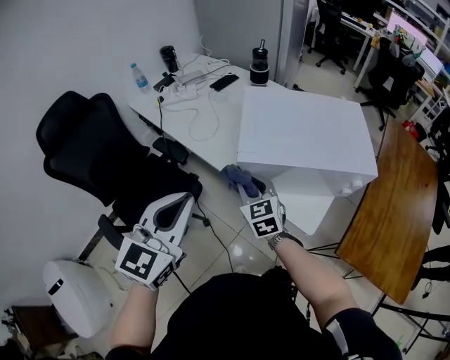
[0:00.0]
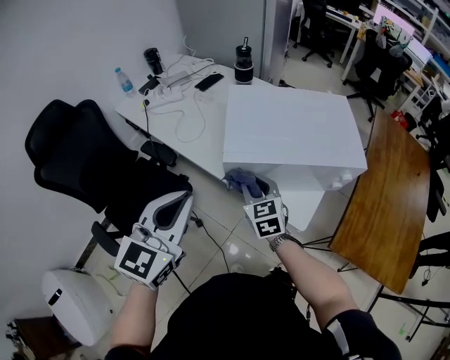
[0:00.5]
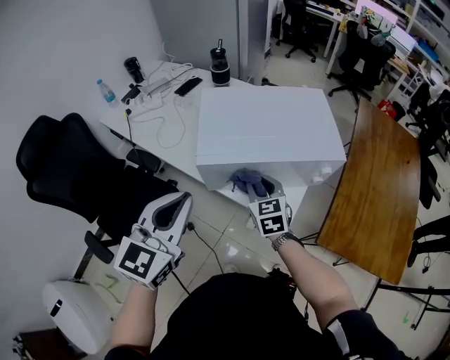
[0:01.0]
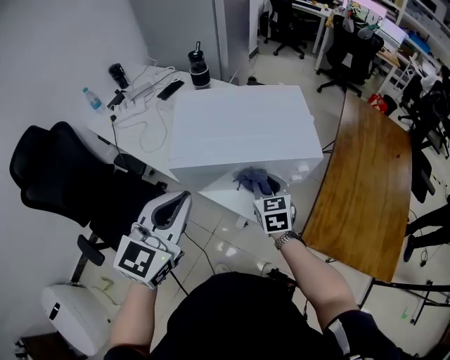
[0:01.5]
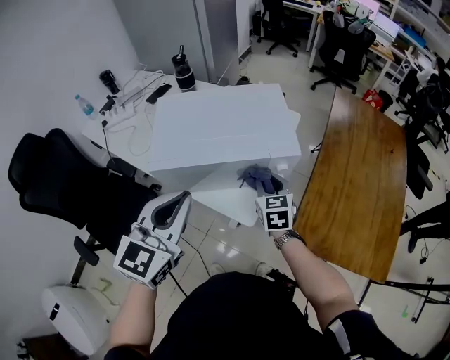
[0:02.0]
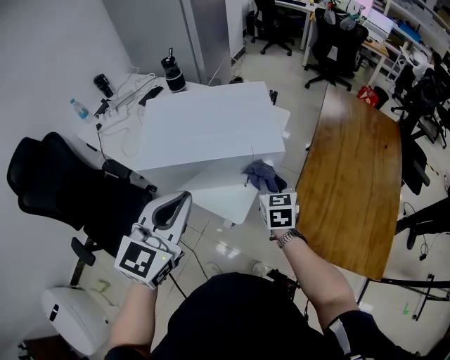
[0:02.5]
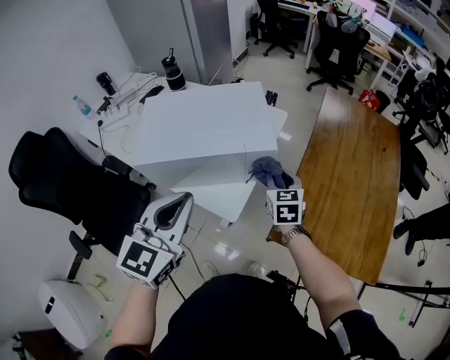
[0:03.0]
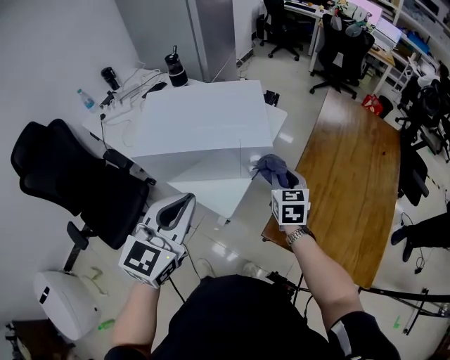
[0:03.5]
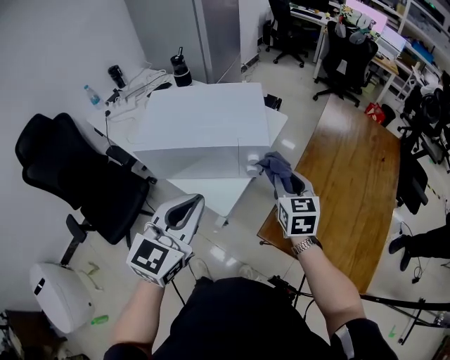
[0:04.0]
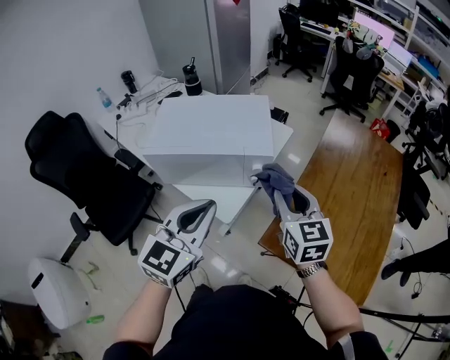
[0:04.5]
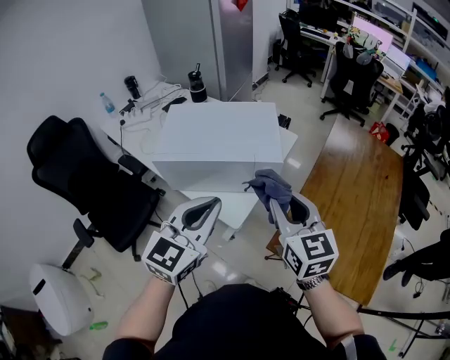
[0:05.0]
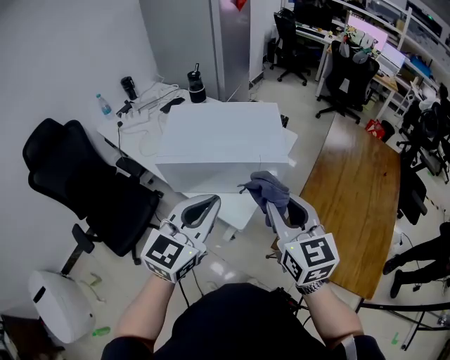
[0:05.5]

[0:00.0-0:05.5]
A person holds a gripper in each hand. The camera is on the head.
0:00.0 to 0:02.0: Both grippers move to the right, some 30 cm. The right gripper rotates approximately 30 degrees.
0:02.0 to 0:03.5: The grippers both shift to the right by about 10 cm.
0:03.5 to 0:05.5: The right gripper travels upward, backward and to the left by some 25 cm, and rotates roughly 30 degrees.

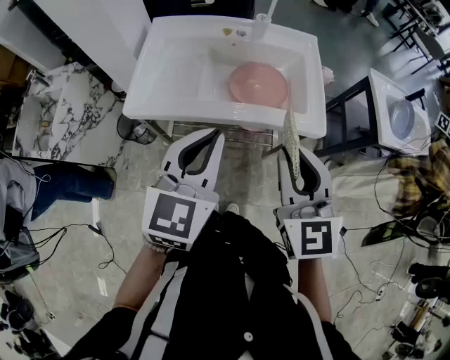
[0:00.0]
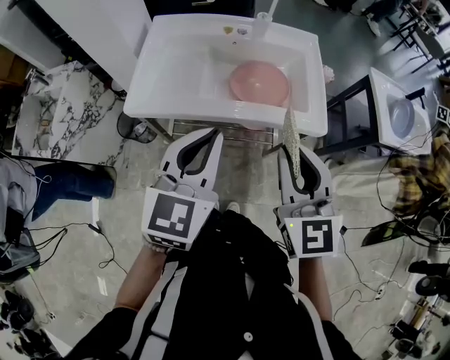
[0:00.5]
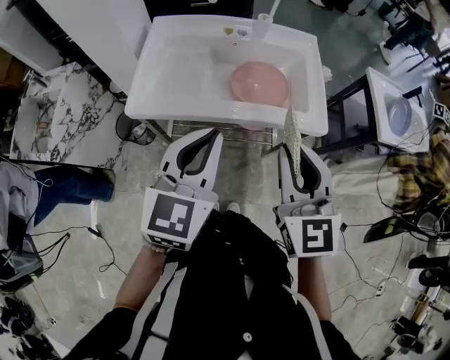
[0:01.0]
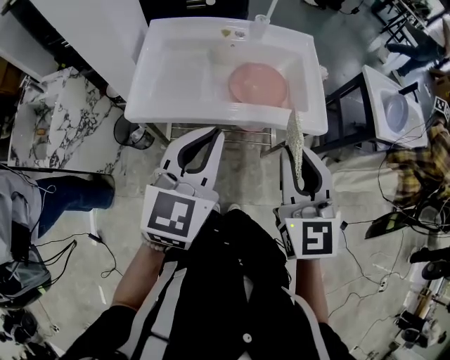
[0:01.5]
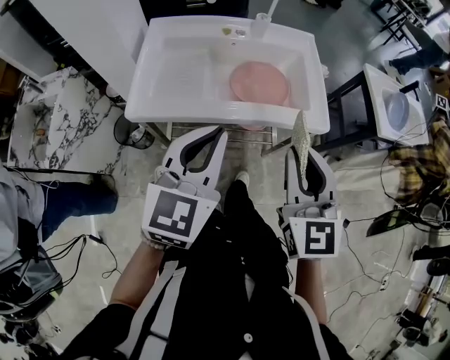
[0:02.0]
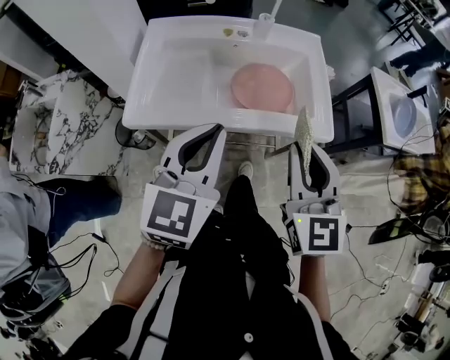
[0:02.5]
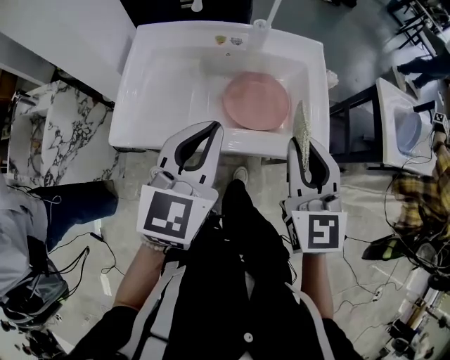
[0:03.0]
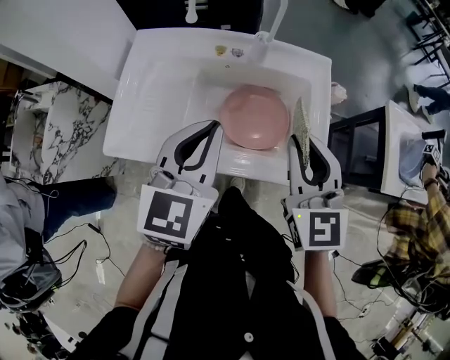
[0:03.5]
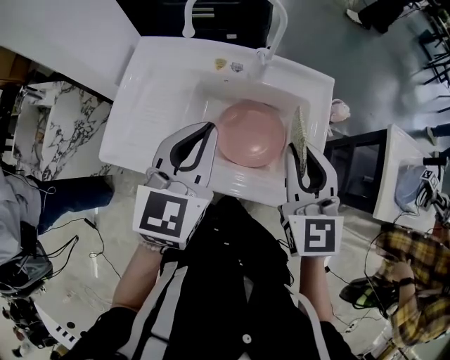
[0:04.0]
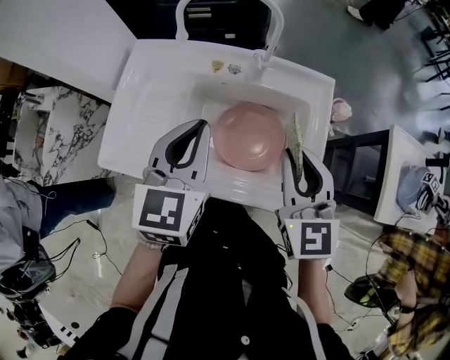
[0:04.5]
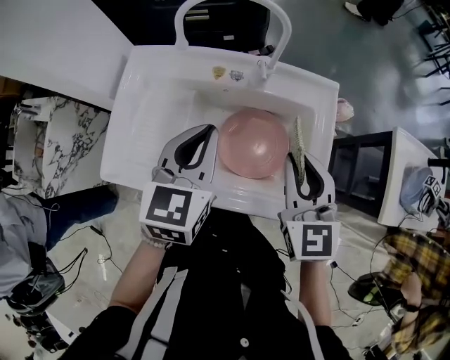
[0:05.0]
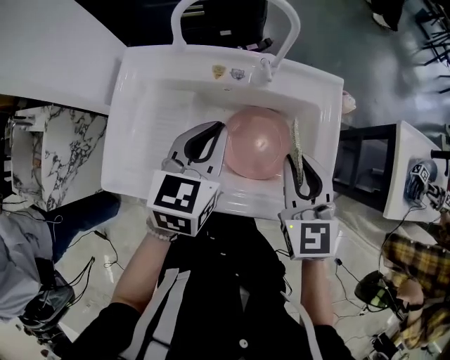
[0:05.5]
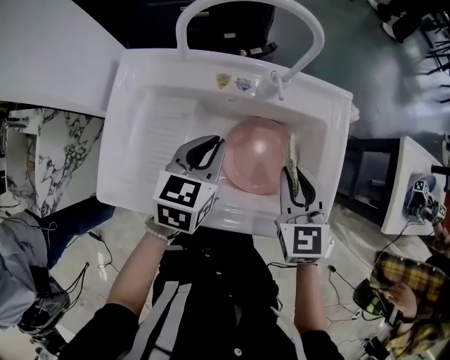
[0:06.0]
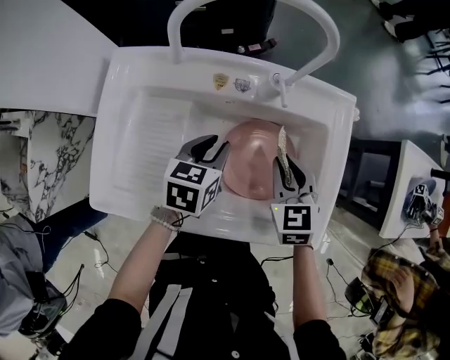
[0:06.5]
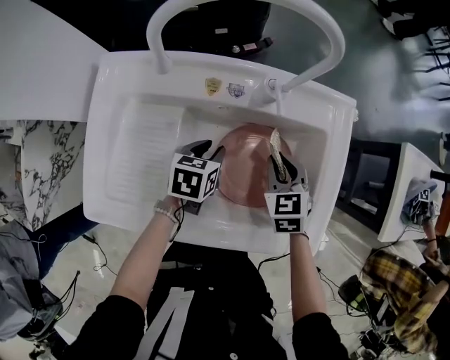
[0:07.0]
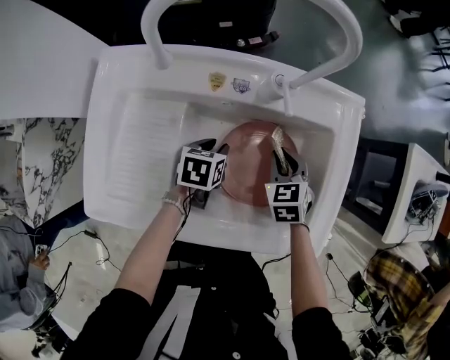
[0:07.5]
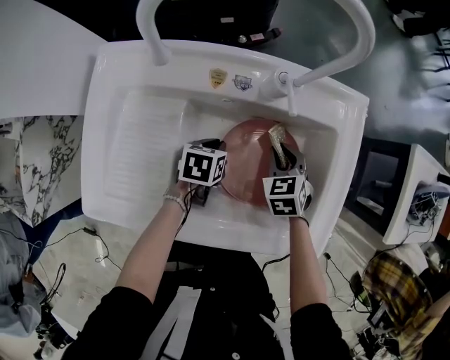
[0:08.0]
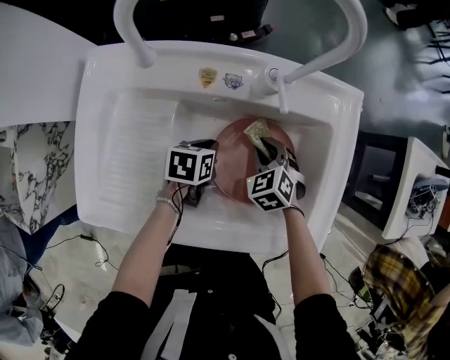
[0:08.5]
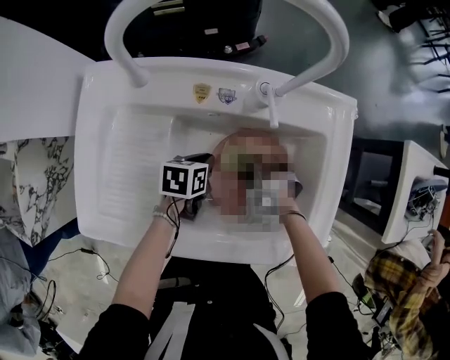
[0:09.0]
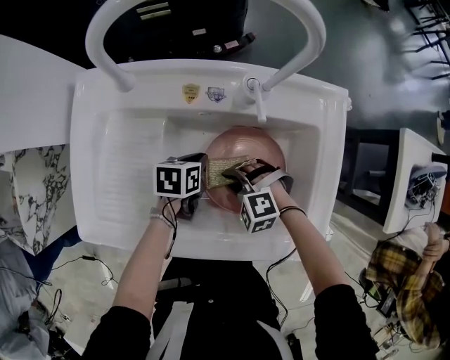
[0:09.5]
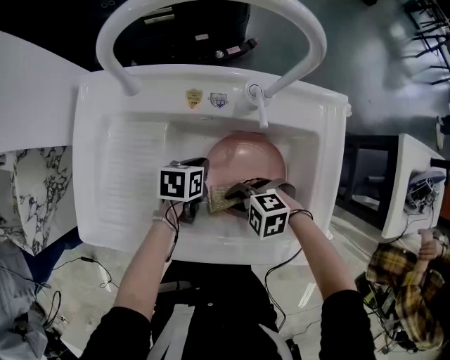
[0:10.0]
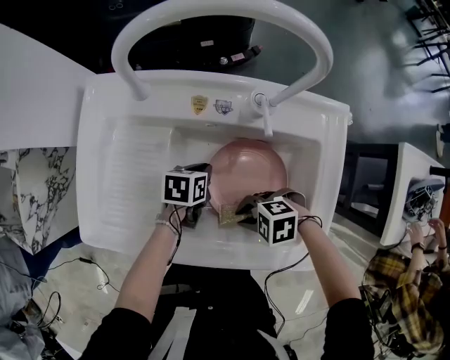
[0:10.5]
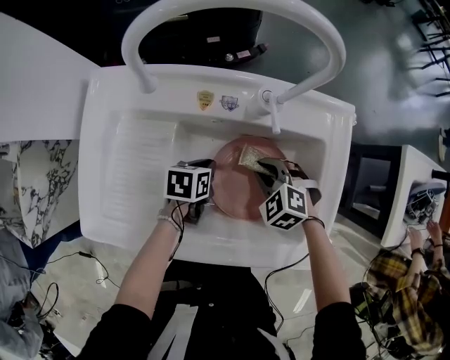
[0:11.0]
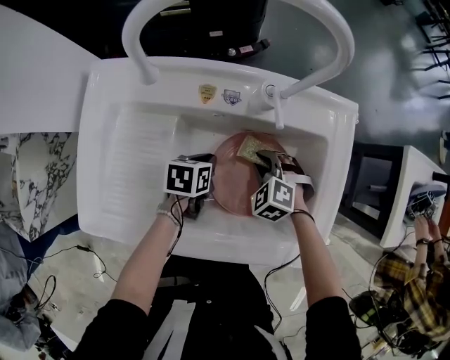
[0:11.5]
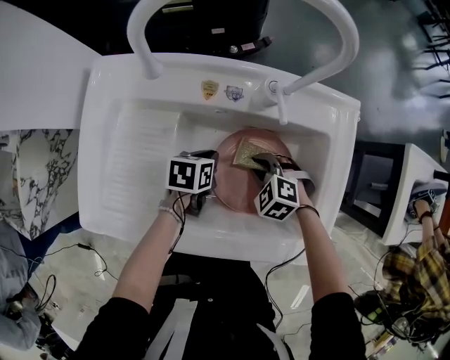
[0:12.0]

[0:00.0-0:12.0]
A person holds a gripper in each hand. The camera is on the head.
0:00.0 to 0:02.0: The grippers stay close to where they were, moving slightly.
0:02.0 to 0:04.0: The two grippers go approximately 25 cm forward.
0:04.0 to 0:06.0: The two grippers go about 15 cm downward and forward. The left gripper rotates approximately 20 degrees.
0:06.0 to 0:08.0: Both grippers travel together downward, about 20 cm. The right gripper changes its angle by some 30 degrees; the left gripper turns by about 30 degrees.
0:08.0 to 0:10.0: The right gripper ends up roughly 15 cm from where it was, and rotates approximately 70 degrees.
0:10.0 to 0:12.0: The right gripper shifts by some 10 cm, and rotates about 30 degrees.

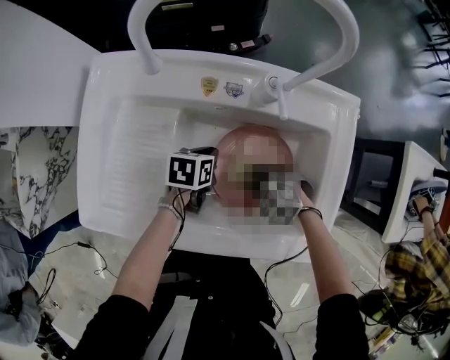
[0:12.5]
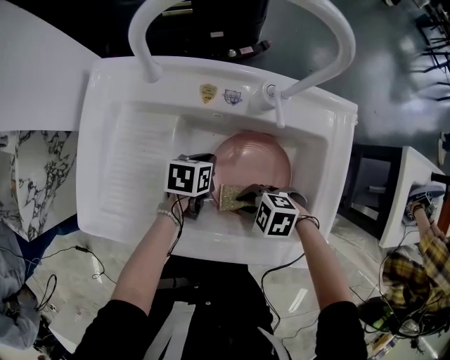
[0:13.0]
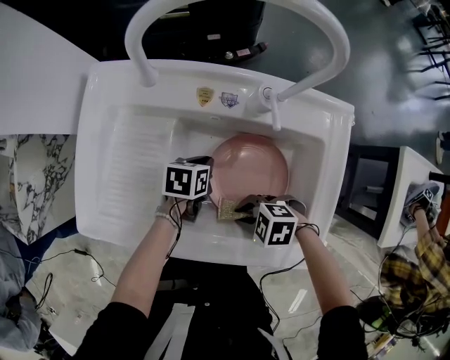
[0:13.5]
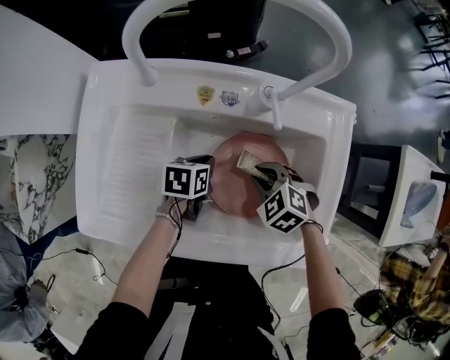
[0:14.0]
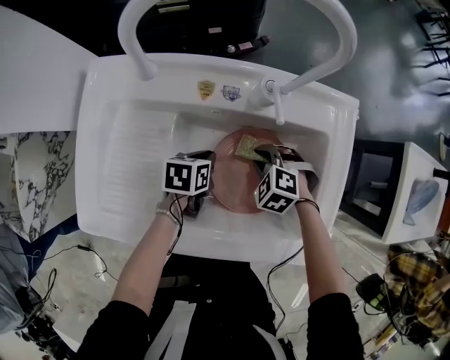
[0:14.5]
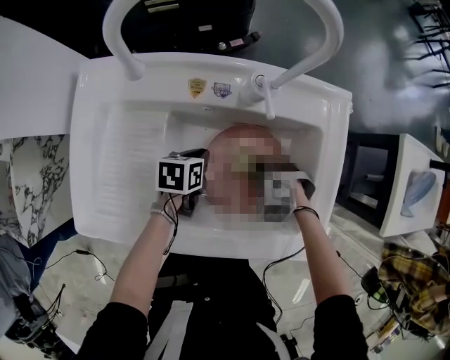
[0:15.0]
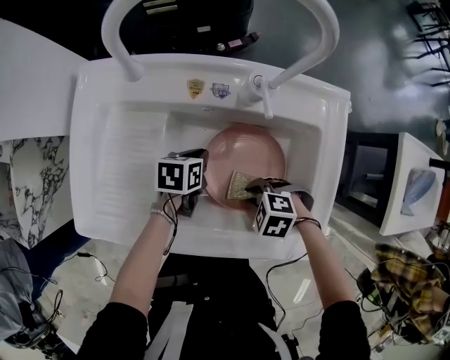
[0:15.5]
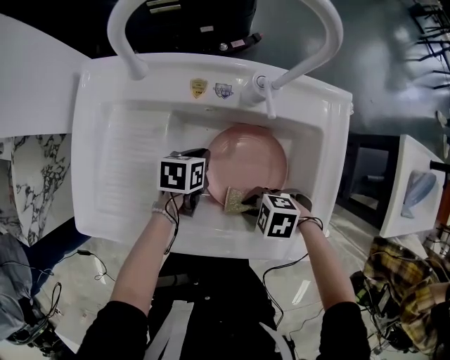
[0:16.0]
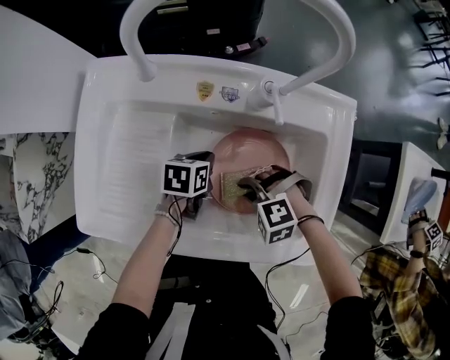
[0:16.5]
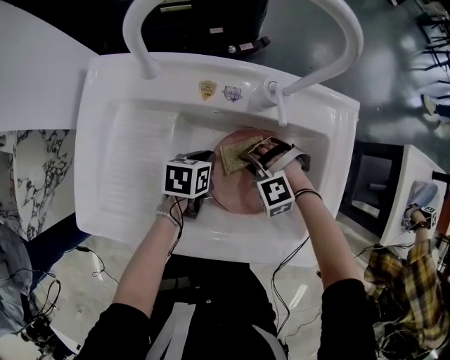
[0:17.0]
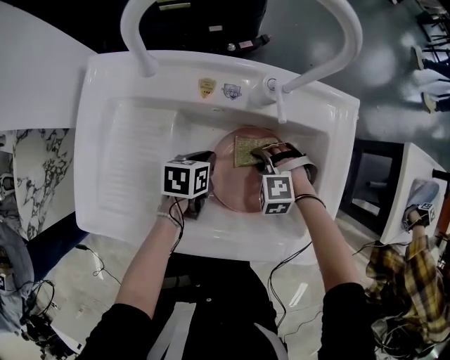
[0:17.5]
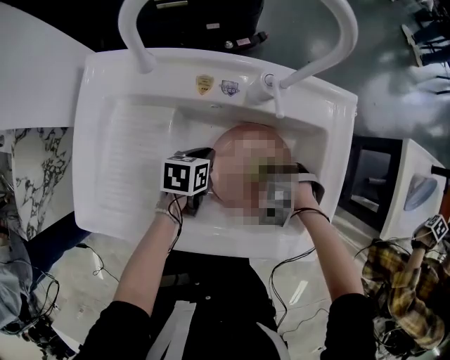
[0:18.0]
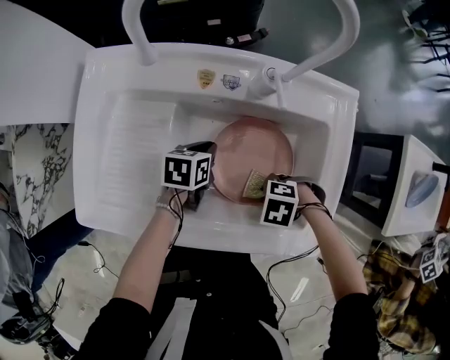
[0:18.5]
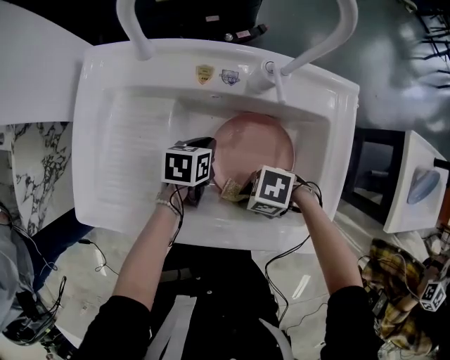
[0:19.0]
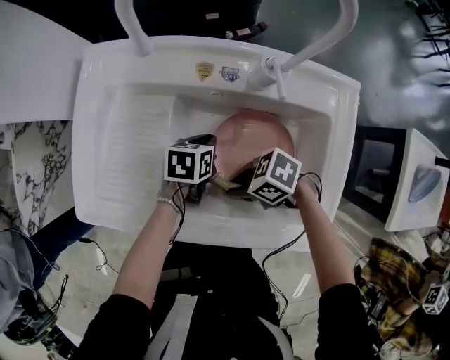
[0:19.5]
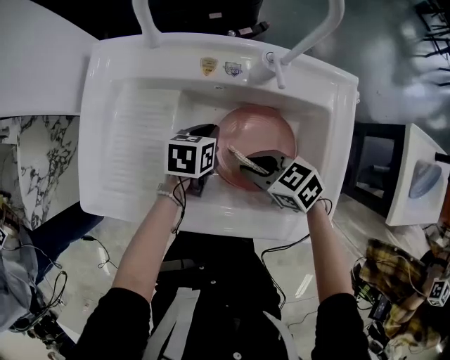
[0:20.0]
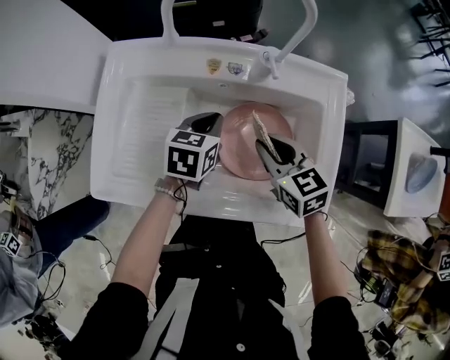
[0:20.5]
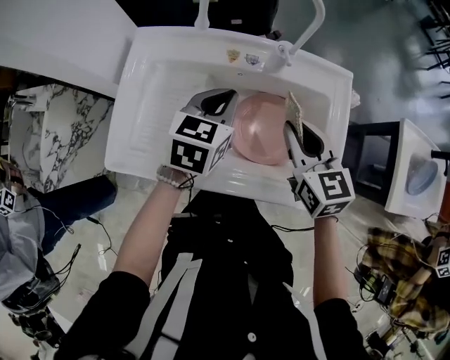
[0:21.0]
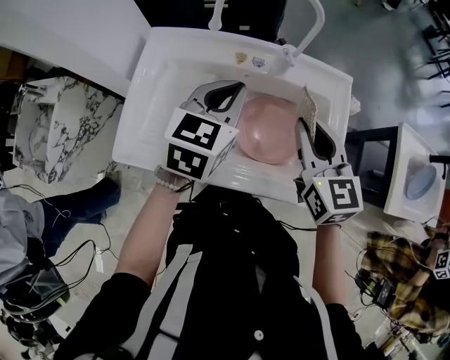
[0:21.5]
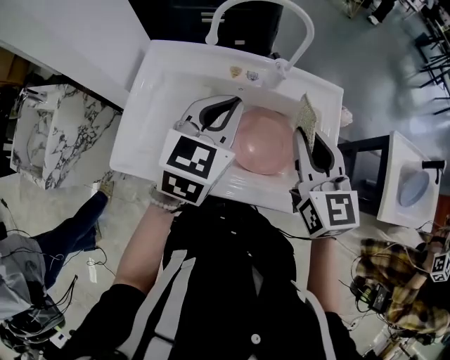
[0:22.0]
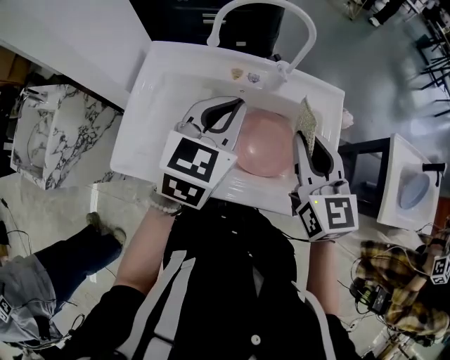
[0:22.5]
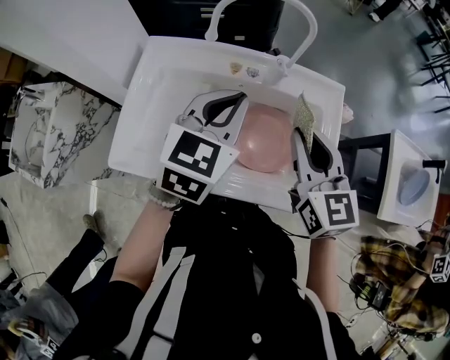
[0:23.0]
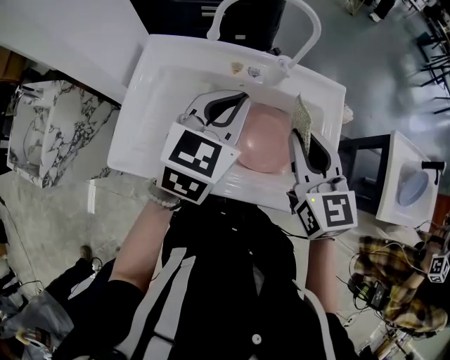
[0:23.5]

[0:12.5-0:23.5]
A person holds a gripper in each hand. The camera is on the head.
0:12.5 to 0:14.5: The right gripper moves some 10 cm.
0:14.5 to 0:16.0: The right gripper shifts by approximately 15 cm, and swivels some 40 degrees.
0:16.0 to 0:18.0: The right gripper changes place by roughly 10 cm, and swivels approximately 30 degrees.
0:18.0 to 0:20.0: The right gripper goes roughly 10 cm upward, and angles its fingers upward, by roughly 40 degrees.
0:20.0 to 0:21.5: Both grippers move upward, roughly 25 cm. The right gripper changes its angle by some 50 degrees; the left gripper turns by roughly 40 degrees.
0:21.5 to 0:23.5: The grippers stay close to where they were, moving slightly.
